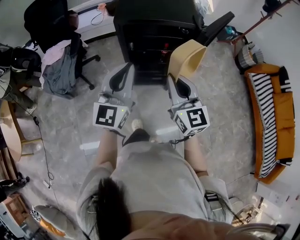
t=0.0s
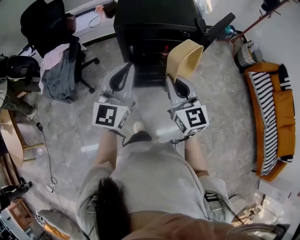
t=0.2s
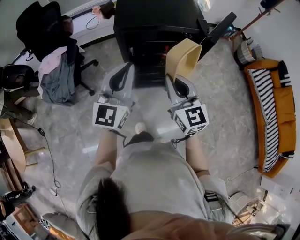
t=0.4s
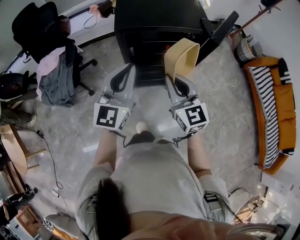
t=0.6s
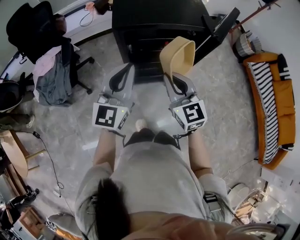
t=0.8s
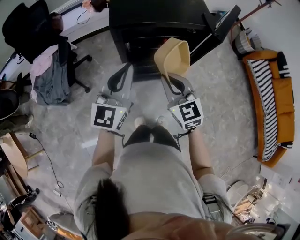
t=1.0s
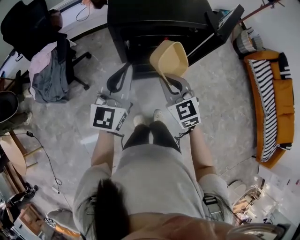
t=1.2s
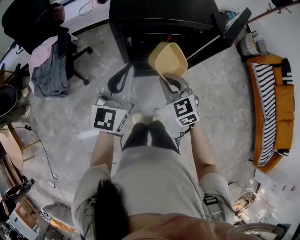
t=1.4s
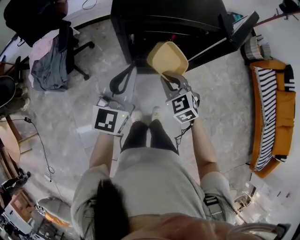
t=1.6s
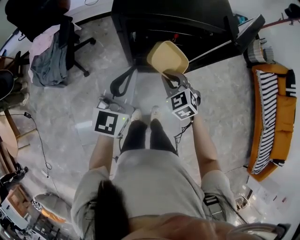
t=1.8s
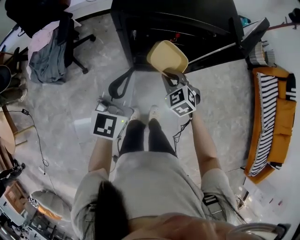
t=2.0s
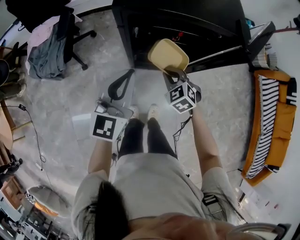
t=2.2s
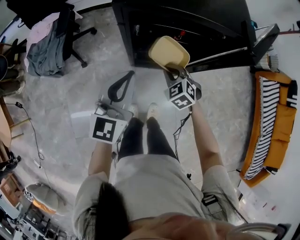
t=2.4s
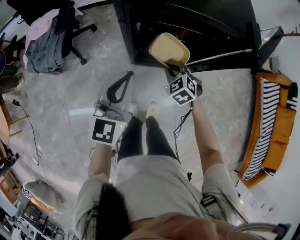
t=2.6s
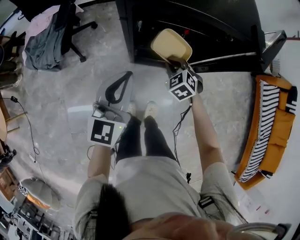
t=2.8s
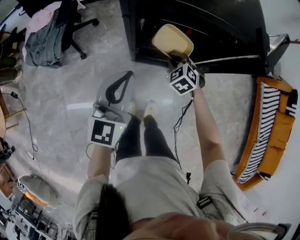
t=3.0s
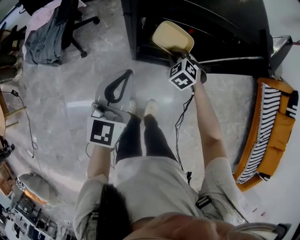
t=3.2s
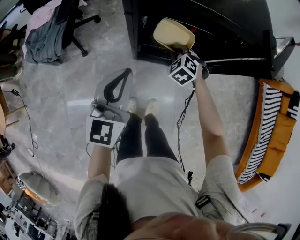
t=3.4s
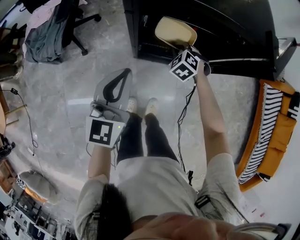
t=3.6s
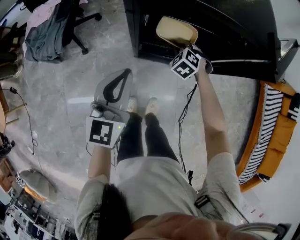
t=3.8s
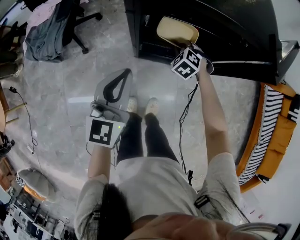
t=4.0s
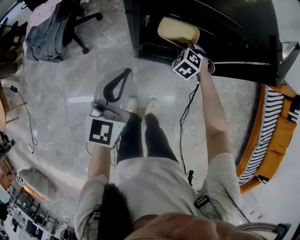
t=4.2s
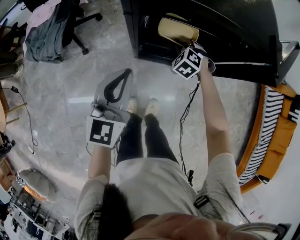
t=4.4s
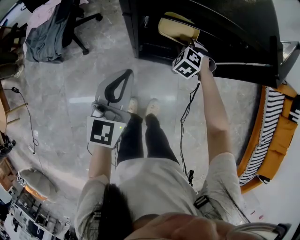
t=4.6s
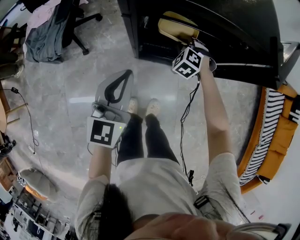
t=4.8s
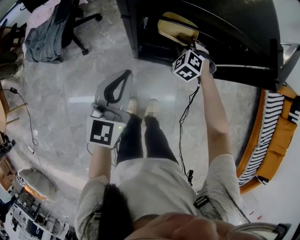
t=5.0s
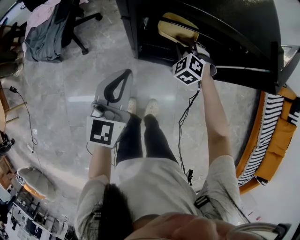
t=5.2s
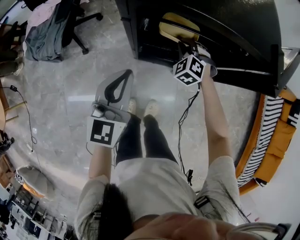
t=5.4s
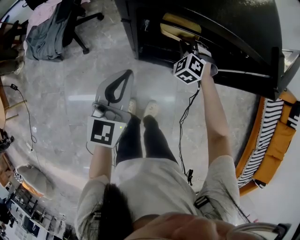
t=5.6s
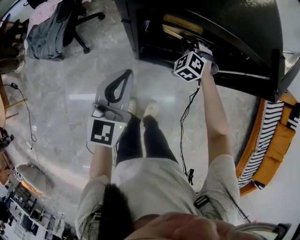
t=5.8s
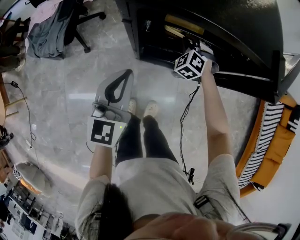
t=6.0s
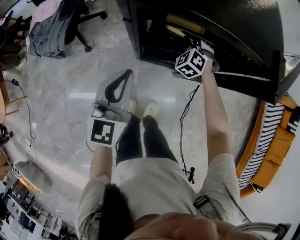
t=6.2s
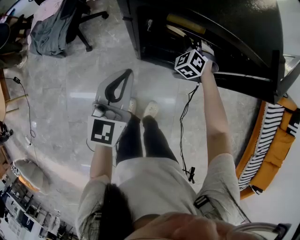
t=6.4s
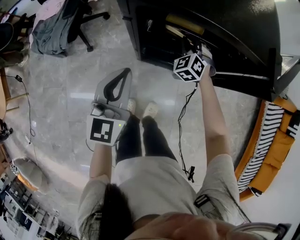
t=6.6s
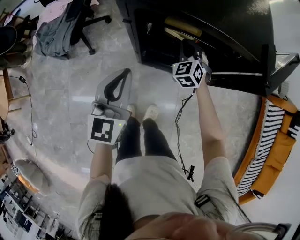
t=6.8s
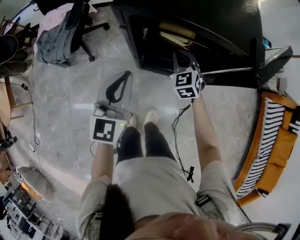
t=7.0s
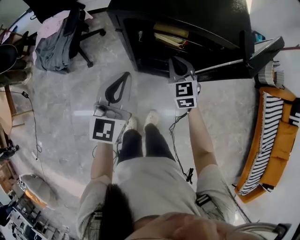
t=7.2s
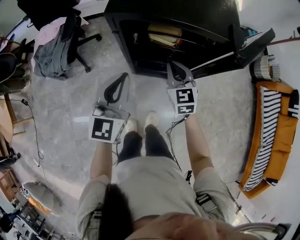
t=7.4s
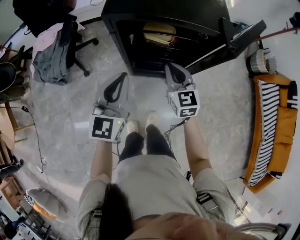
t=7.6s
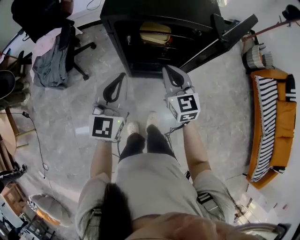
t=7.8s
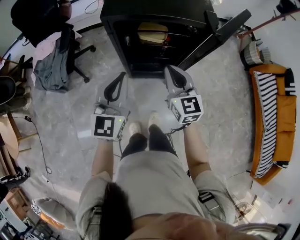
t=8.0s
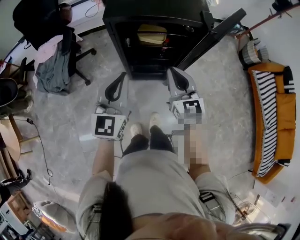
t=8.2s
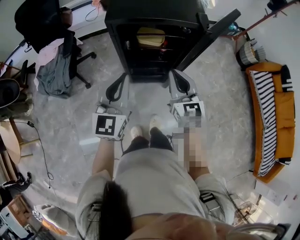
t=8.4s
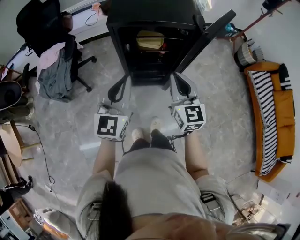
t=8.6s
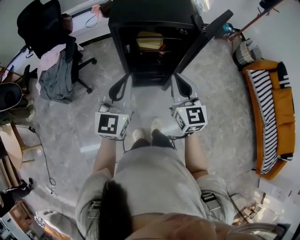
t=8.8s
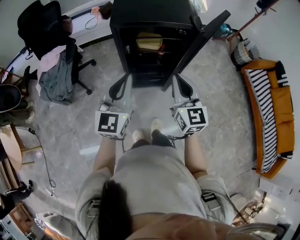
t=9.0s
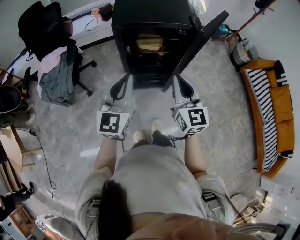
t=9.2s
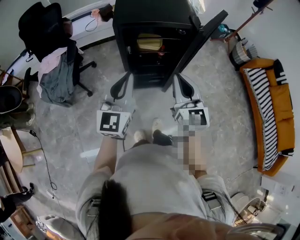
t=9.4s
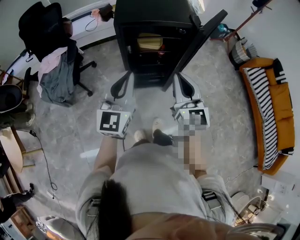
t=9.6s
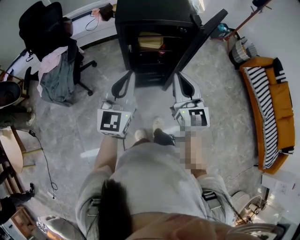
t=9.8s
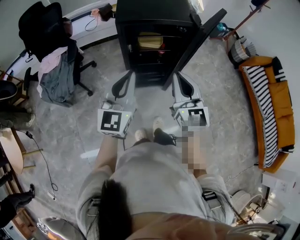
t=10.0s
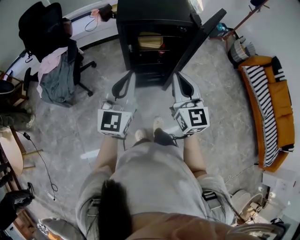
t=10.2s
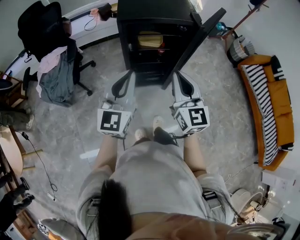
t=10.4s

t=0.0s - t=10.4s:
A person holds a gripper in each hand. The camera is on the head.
t=0.0s - t=1.4s: The right gripper shifts about 20 cm downward and forward, and turns by some 30 degrees; the left gripper goes approximately 15 cm forward and downward.
t=1.4s - t=3.0s: The left gripper shifts about 10 cm downward; the right gripper goes some 25 cm downward and forward, and turns by some 30 degrees.
t=3.0s - t=4.4s: The right gripper shifts approximately 5 cm forward.
t=4.4s - t=6.0s: The right gripper shifts roughly 5 cm forward.
t=6.0s - t=7.4s: The left gripper shifts some 10 cm upward; the right gripper shifts about 20 cm upward and backward, and rotates around the line of its fingers by approximately 50 degrees, clockwise from behind.
t=7.4s - t=9.0s: The left gripper shifts roughly 15 cm upward and backward. The right gripper moves backward and upward, roughly 25 cm, and turns by roughly 20 degrees.
t=9.0s - t=10.4s: The right gripper goes approximately 5 cm backward, while the left gripper ends up about 5 cm from where it was.

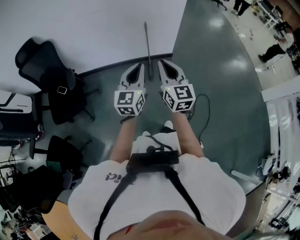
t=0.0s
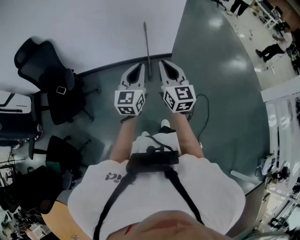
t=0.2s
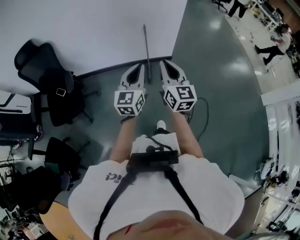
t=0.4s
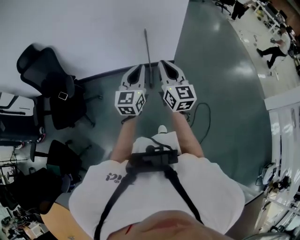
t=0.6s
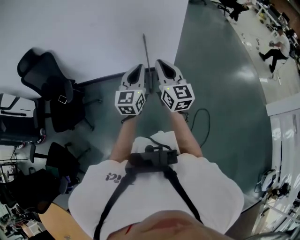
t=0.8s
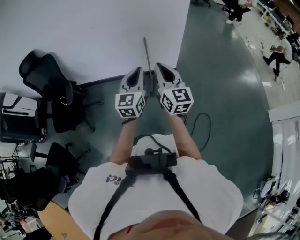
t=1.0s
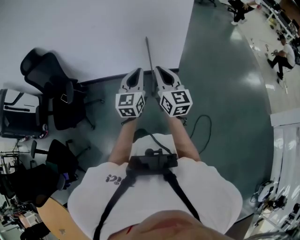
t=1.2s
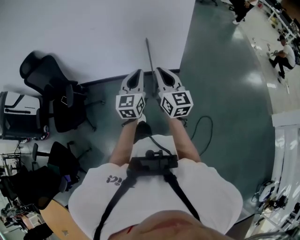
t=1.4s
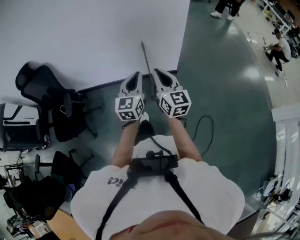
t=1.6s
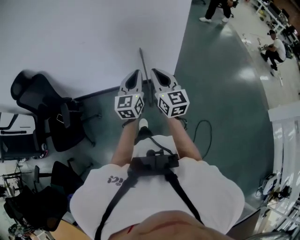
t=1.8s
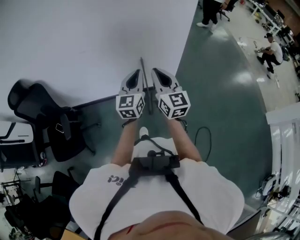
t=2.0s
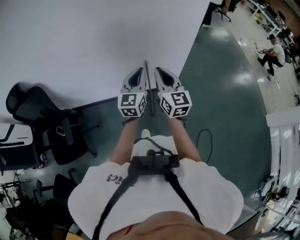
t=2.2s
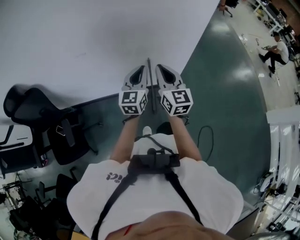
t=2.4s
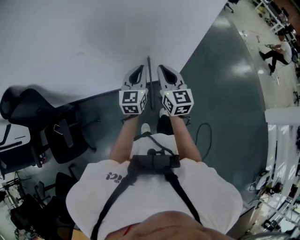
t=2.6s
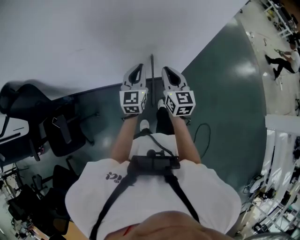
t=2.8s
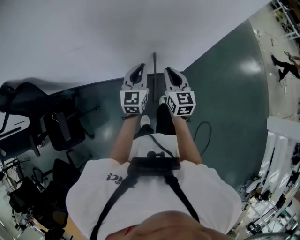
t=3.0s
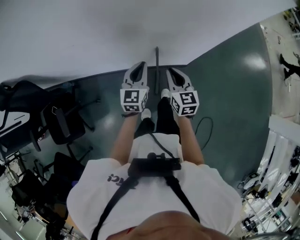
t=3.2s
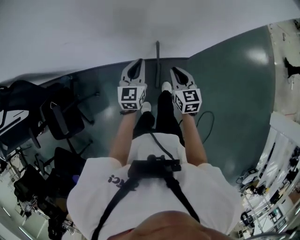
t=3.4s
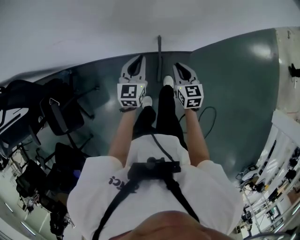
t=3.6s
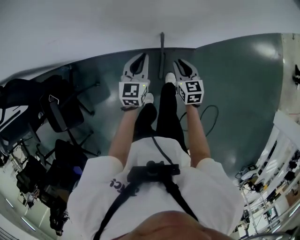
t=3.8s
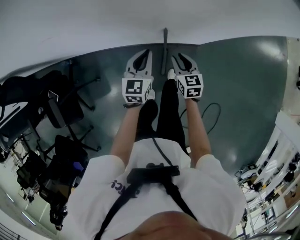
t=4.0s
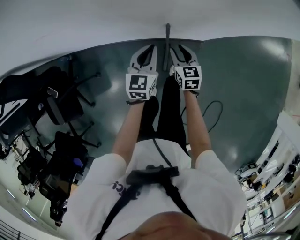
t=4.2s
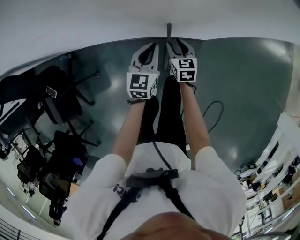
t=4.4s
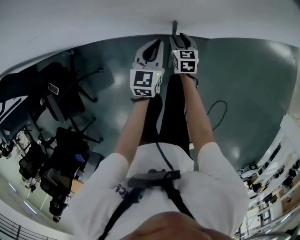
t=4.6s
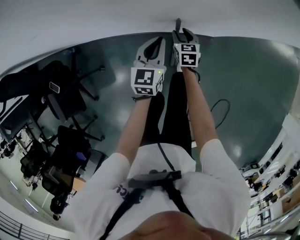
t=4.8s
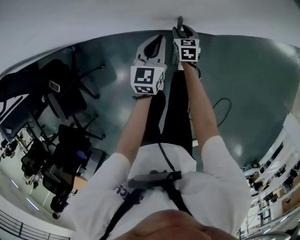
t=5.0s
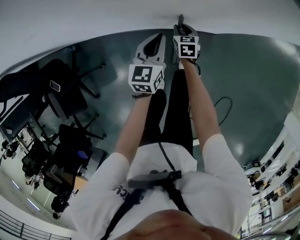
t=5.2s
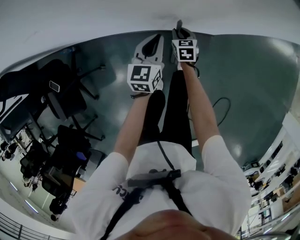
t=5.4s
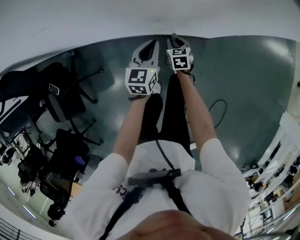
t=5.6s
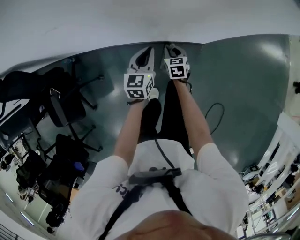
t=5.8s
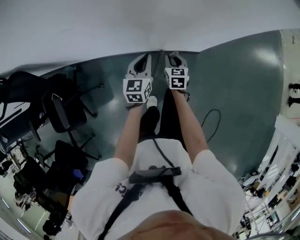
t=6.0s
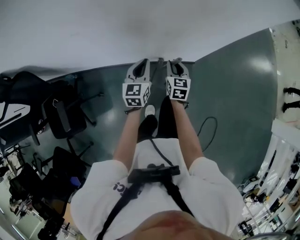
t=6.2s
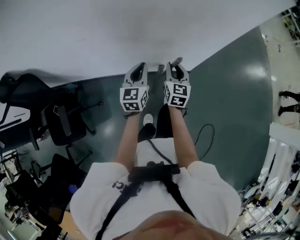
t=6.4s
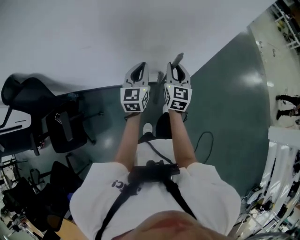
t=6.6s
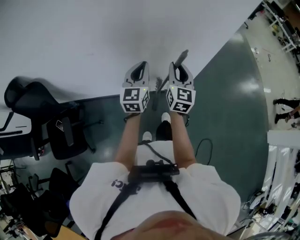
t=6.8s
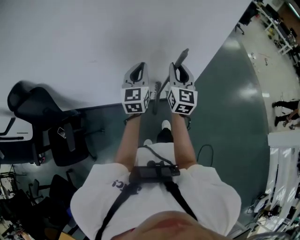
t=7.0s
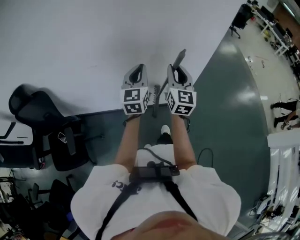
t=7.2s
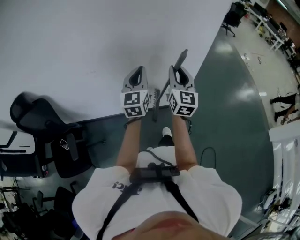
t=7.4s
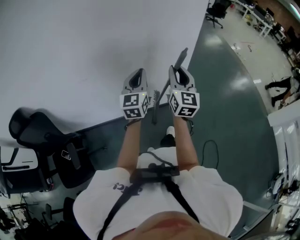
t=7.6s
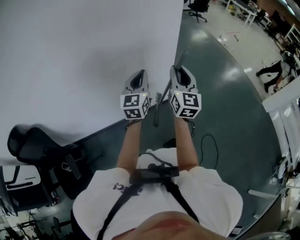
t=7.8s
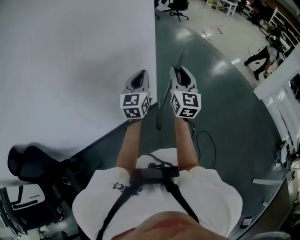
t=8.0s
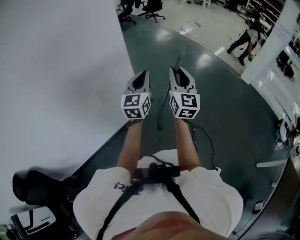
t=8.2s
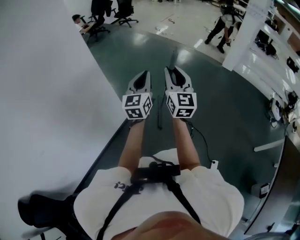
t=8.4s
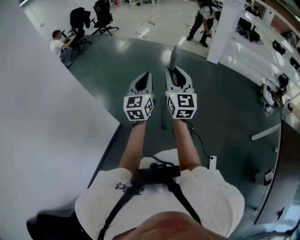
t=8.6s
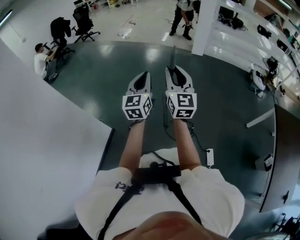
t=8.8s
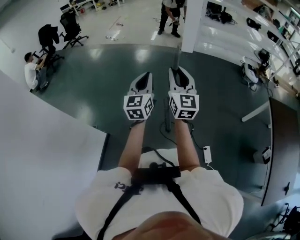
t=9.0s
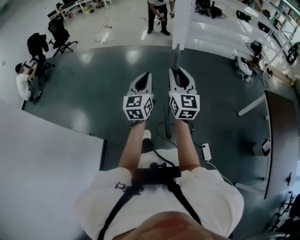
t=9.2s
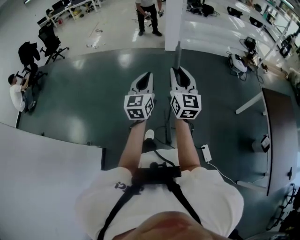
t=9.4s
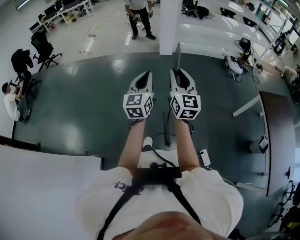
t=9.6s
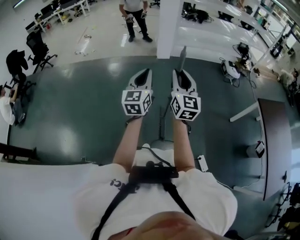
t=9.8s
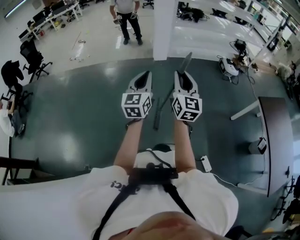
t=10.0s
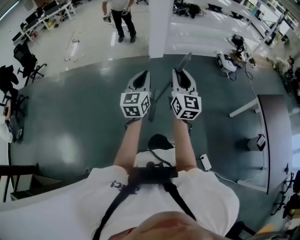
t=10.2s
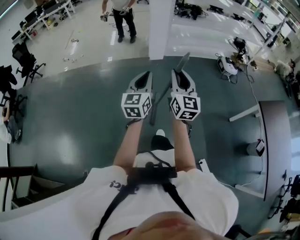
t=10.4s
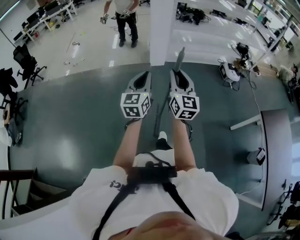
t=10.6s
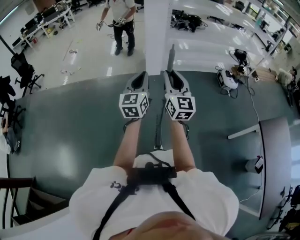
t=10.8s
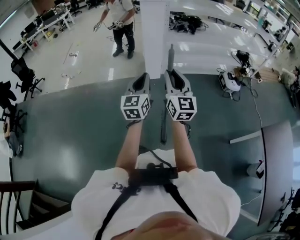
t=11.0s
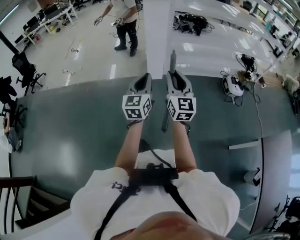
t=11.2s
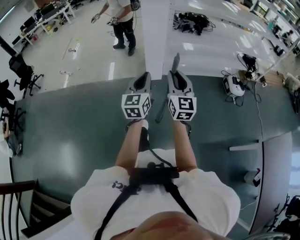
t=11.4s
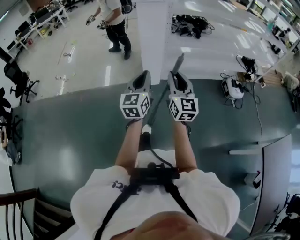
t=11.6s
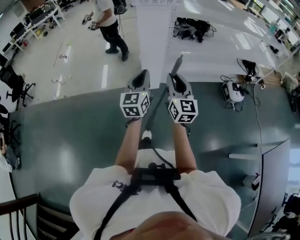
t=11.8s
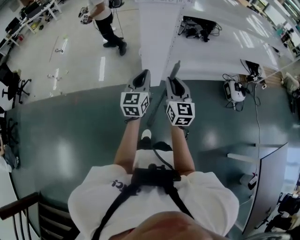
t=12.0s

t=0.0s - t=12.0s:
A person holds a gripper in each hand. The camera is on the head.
t=0.0s - t=1.6s: Both grippers travel together forward and to the right, approximately 25 cm.
t=1.6s - t=3.0s: The left gripper moves forward, roughly 35 cm. Meanwhile the right gripper moves forward and downward, approximately 35 cm.
t=3.0s - t=4.4s: Both grippers travel together downward, approximately 30 cm. The right gripper rotates about 20 degrees, and opens up.
t=4.4s - t=6.0s: The left gripper moves upward and to the left, roughly 10 cm; the right gripper shifts approximately 5 cm upward.
t=6.0s - t=7.6s: The two grippers go some 40 cm upward. The left gripper swivels some 30 degrees. The right gripper points its fingers approximately 50 degrees further upward.
t=7.6s - t=9.0s: The two grippers travel together, approximately 80 cm. The right gripper rotates approximately 60 degrees, while the left gripper turns by about 70 degrees.
t=9.0s - t=10.4s: Both grippers are carried forward, some 50 cm. The left gripper rotates about 20 degrees.
t=10.4s - t=12.0s: The two grippers travel together, forward, roughly 70 cm.

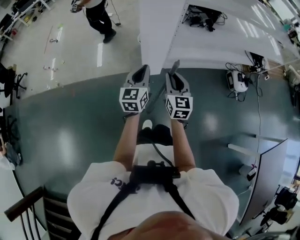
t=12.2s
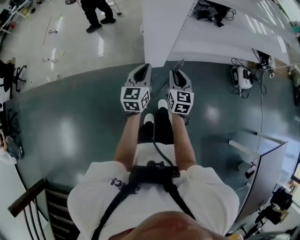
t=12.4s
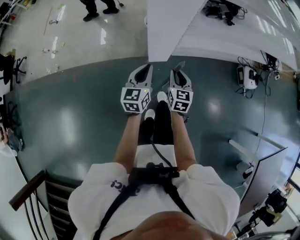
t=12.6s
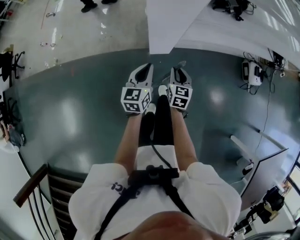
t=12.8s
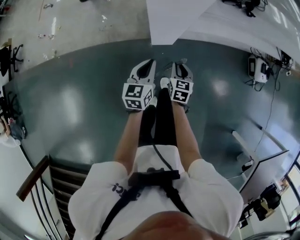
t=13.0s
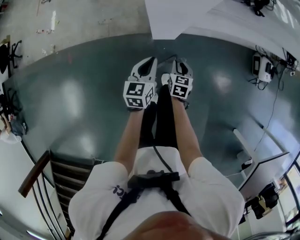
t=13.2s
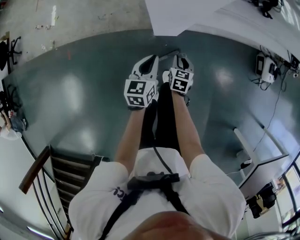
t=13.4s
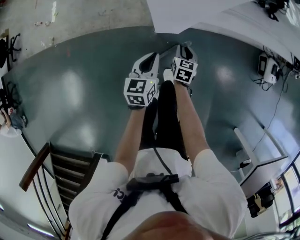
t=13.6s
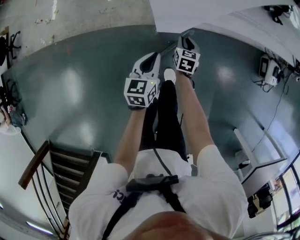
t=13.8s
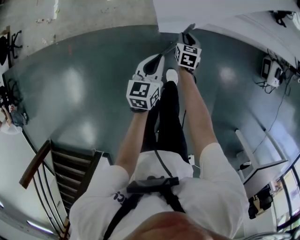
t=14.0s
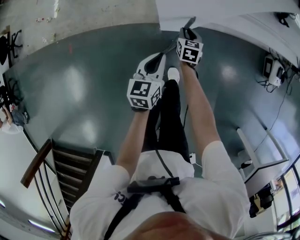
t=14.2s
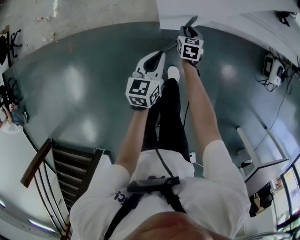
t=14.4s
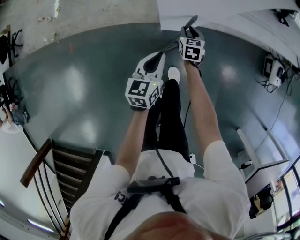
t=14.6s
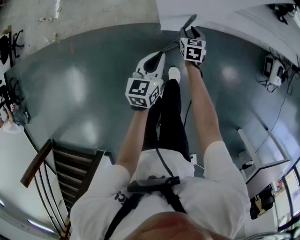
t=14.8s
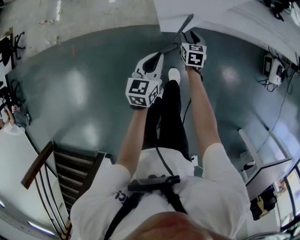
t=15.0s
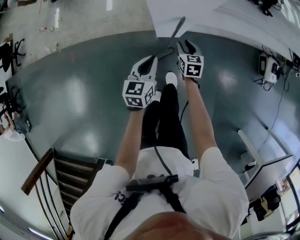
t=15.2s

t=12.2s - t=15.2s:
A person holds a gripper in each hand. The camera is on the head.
t=12.2s - t=13.8s: The two grippers go about 40 cm downward and forward. The left gripper turns by roughly 30 degrees. The right gripper tilts its fingers approximately 30 degrees downward.
t=13.8s - t=15.2s: The right gripper ends up some 5 cm from where it was.
